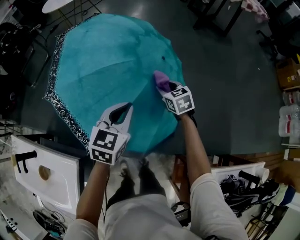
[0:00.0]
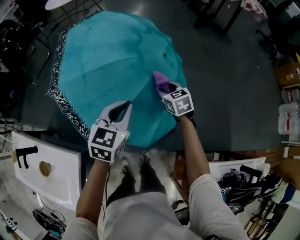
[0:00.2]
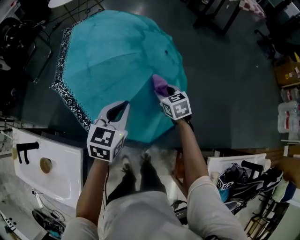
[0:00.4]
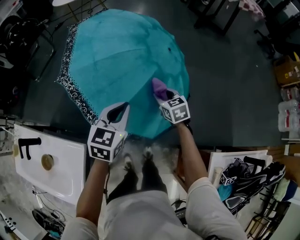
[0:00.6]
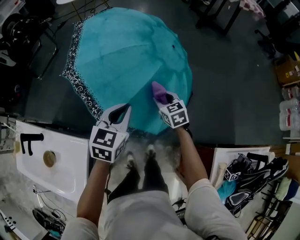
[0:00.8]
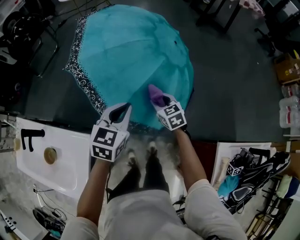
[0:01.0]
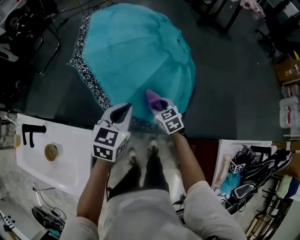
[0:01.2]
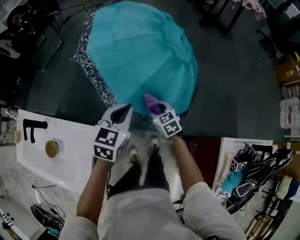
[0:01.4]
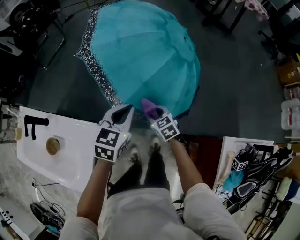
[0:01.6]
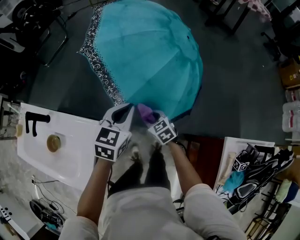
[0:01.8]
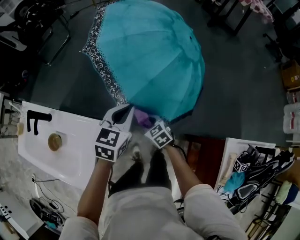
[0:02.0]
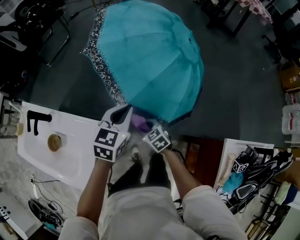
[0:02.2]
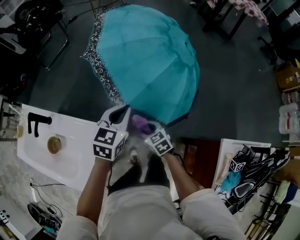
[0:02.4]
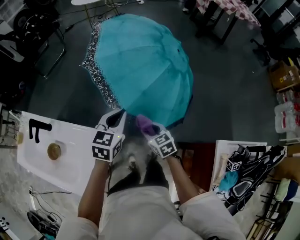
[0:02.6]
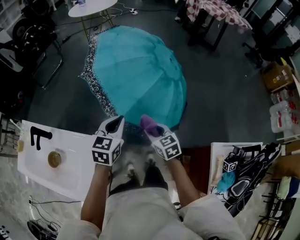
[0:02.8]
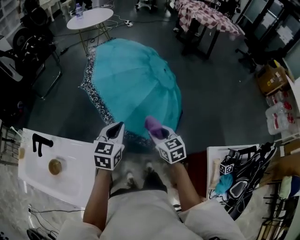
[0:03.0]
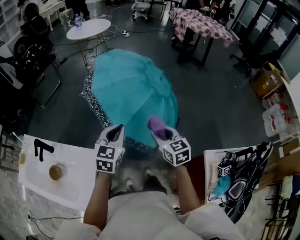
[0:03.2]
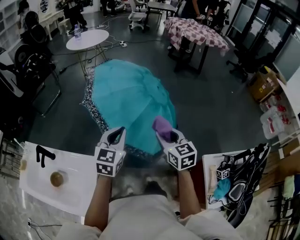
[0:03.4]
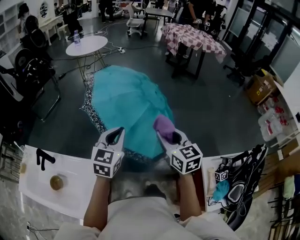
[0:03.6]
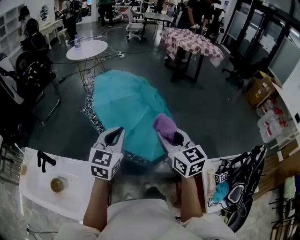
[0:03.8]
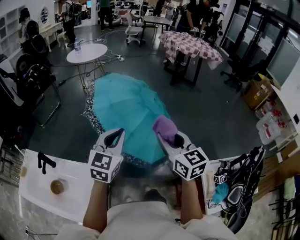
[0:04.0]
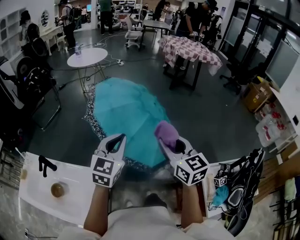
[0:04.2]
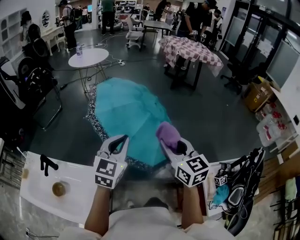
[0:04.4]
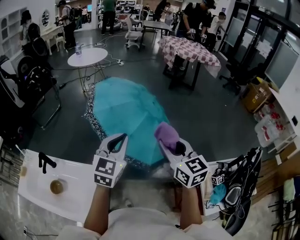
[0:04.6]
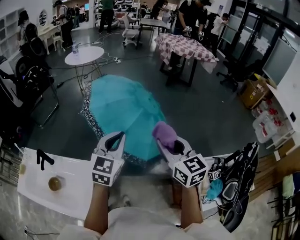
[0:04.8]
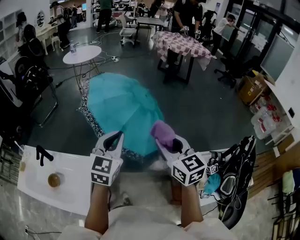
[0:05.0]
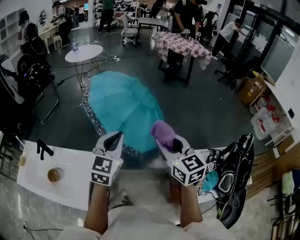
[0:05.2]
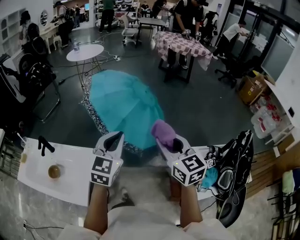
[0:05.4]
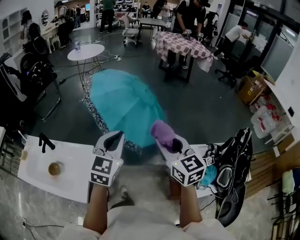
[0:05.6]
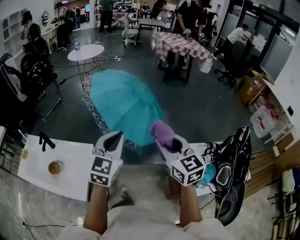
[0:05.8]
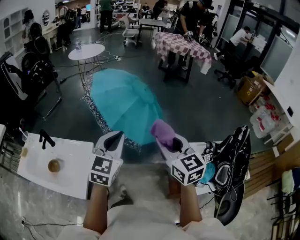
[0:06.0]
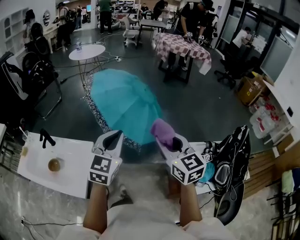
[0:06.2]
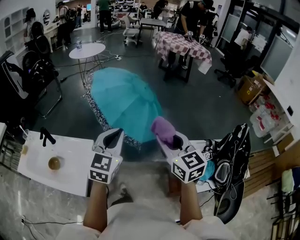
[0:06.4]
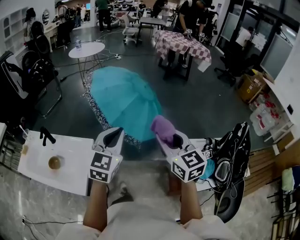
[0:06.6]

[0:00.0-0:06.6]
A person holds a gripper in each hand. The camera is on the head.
0:00.0 to 0:01.6: The two grippers go approximately 30 cm backward and to the left.
0:01.6 to 0:03.2: The left gripper heads upward, covering about 10 cm; the right gripper heads upward, covering approximately 25 cm, and turns by about 20 degrees.
0:03.2 to 0:05.0: The left gripper goes approximately 20 cm upward, backward and to the right, while the right gripper heads upward and backward, covering about 25 cm.
0:05.0 to 0:06.6: The two grippers go approximately 15 cm backward.

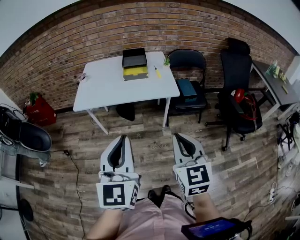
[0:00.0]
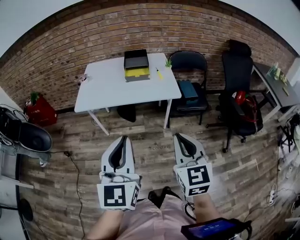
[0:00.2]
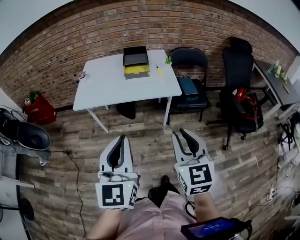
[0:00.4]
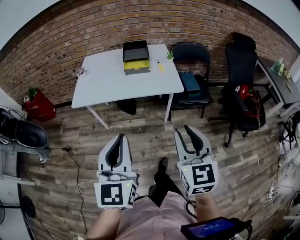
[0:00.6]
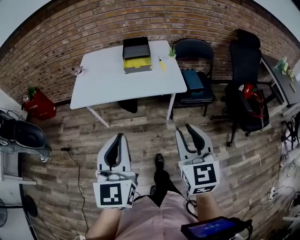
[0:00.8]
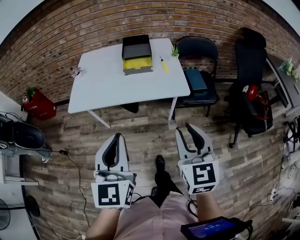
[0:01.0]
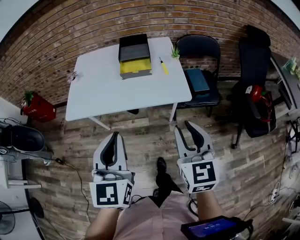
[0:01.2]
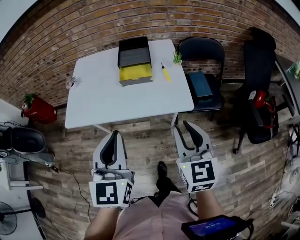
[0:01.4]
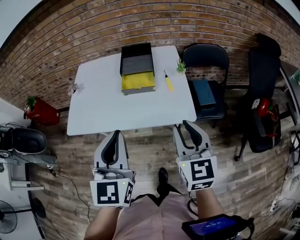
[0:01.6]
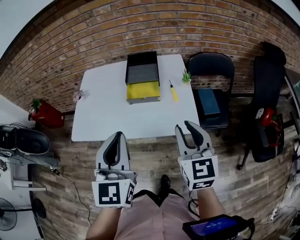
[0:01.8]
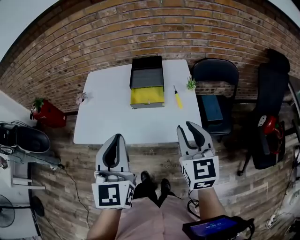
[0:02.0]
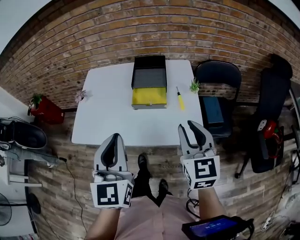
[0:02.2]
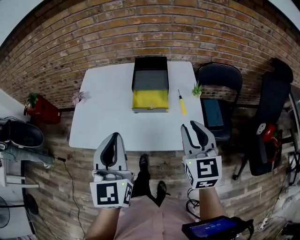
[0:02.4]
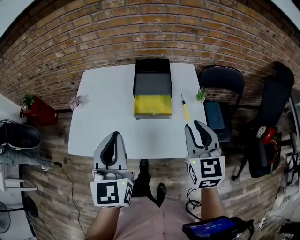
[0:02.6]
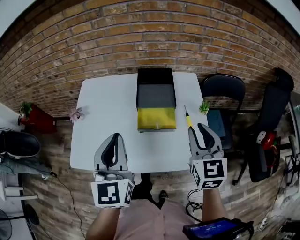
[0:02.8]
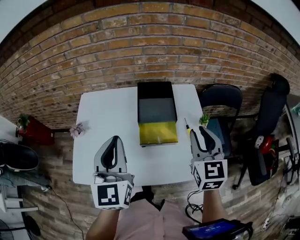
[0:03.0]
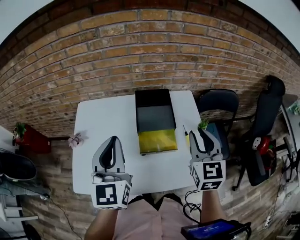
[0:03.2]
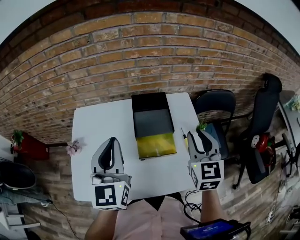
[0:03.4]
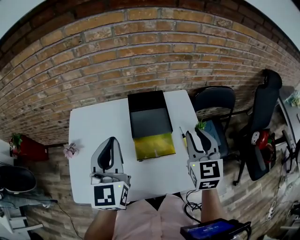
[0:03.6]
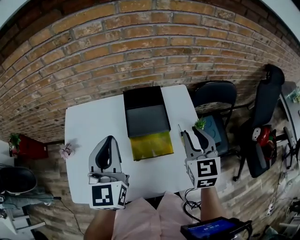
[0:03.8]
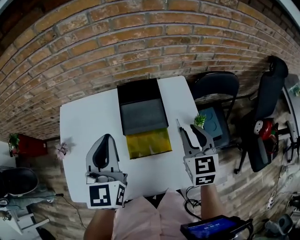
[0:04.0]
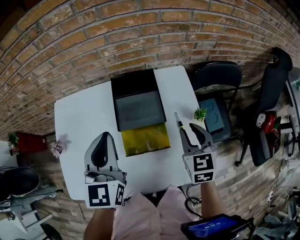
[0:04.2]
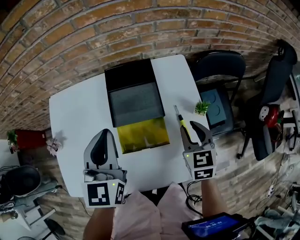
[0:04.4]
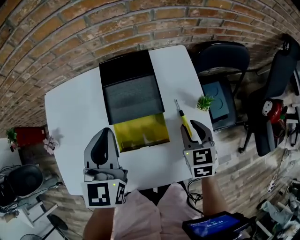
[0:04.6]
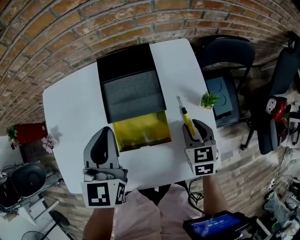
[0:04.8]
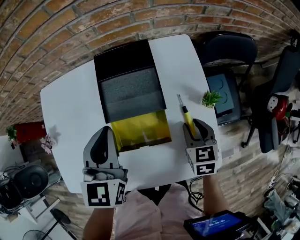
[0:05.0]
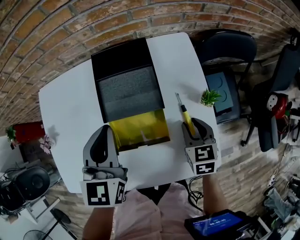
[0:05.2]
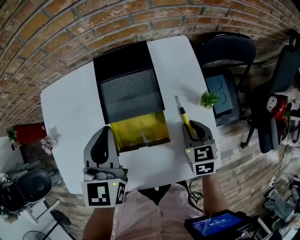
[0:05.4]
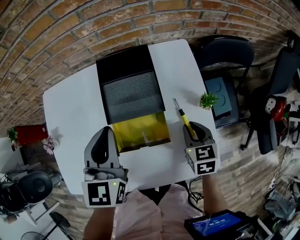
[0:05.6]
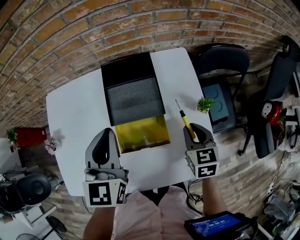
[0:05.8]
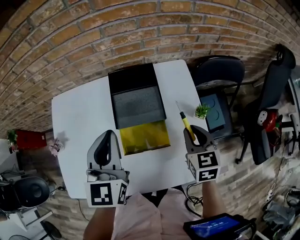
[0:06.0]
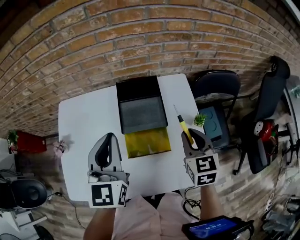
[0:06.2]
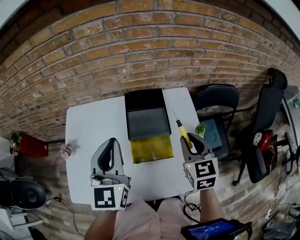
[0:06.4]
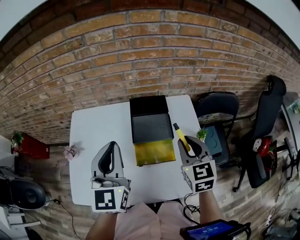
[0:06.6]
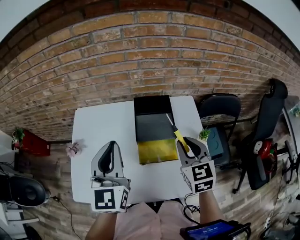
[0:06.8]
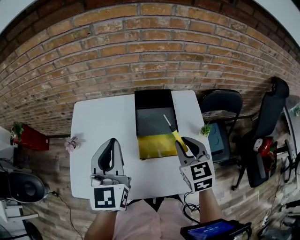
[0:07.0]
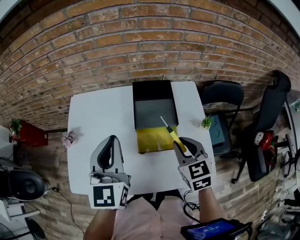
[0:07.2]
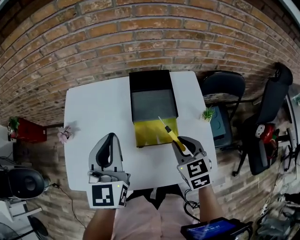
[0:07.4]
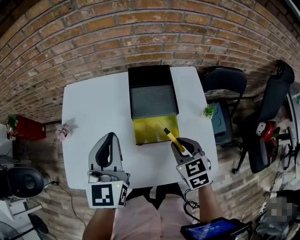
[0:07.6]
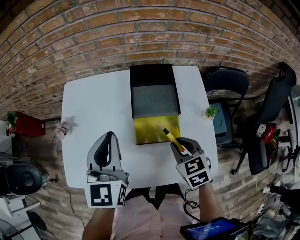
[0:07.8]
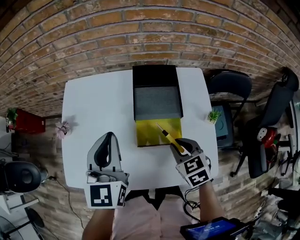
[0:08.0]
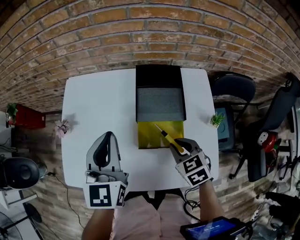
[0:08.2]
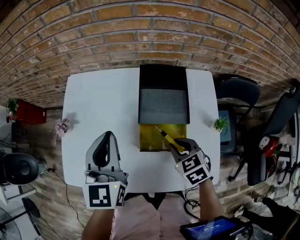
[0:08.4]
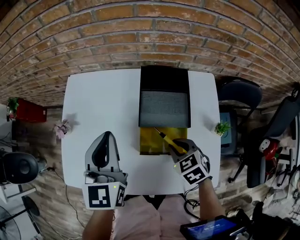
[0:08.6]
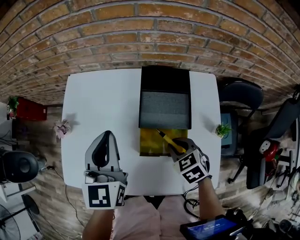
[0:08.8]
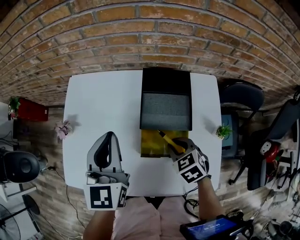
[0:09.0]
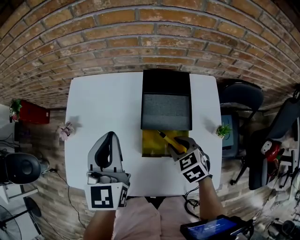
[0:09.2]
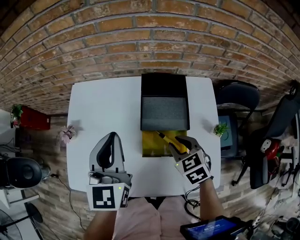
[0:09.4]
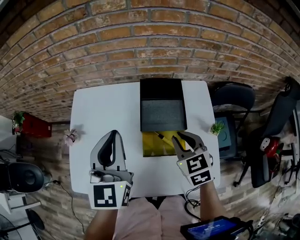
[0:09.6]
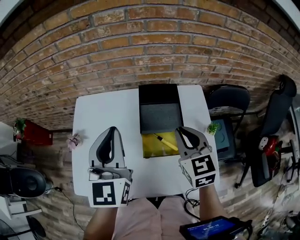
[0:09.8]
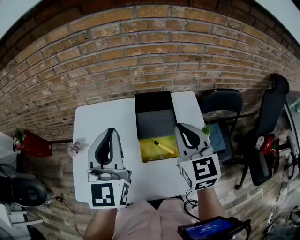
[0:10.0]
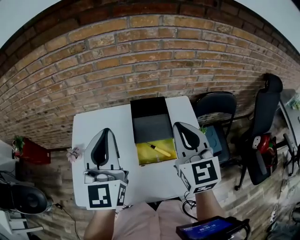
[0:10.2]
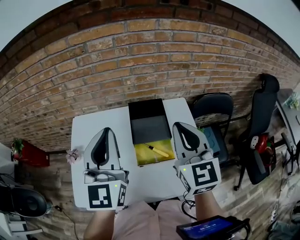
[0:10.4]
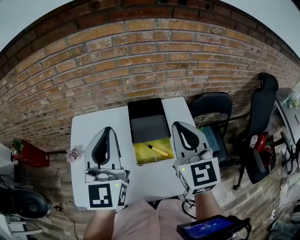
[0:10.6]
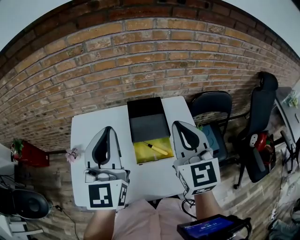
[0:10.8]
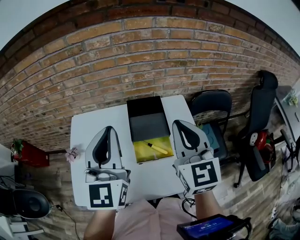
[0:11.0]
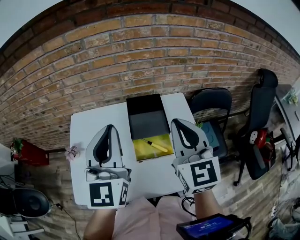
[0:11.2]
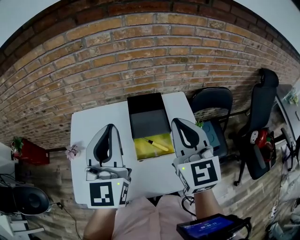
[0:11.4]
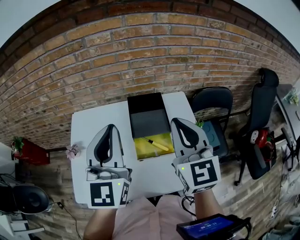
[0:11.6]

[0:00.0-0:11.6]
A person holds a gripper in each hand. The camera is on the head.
0:00.0 to 0:01.4: The two grippers go about 25 cm forward. The right gripper opens up.
0:01.4 to 0:02.8: The two grippers go some 25 cm forward.
0:02.8 to 0:04.4: The left gripper goes approximately 20 cm forward, while the right gripper heads downward and forward, covering about 20 cm, and turns by about 20 degrees.
0:05.8 to 0:07.2: The left gripper moves upward, to the left and backward, roughly 15 cm; the right gripper shifts roughly 15 cm to the left and upward, and swivels roughly 20 degrees.
0:07.2 to 0:08.8: The left gripper travels downward and forward by roughly 10 cm. The right gripper moves downward, some 15 cm, and turns by about 30 degrees.
0:08.8 to 0:10.2: The right gripper is displaced upward by roughly 30 cm, and points its fingers some 50 degrees further upward, while the left gripper is displaced upward by about 15 cm, and swivels some 20 degrees.
0:10.2 to 0:11.6: There are only small adjustments of the grippers.

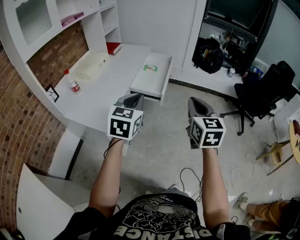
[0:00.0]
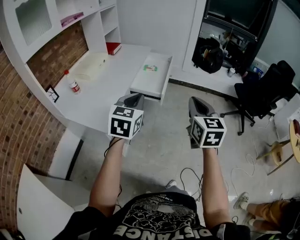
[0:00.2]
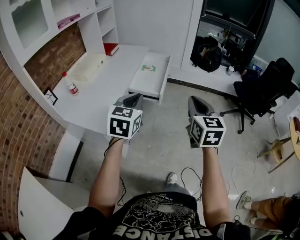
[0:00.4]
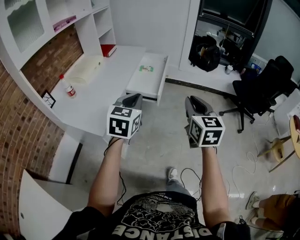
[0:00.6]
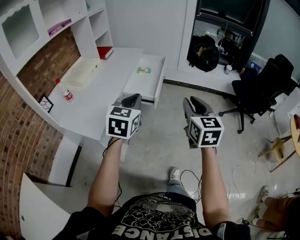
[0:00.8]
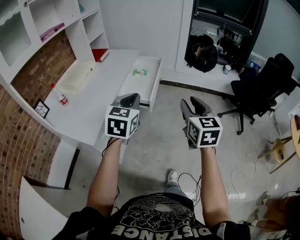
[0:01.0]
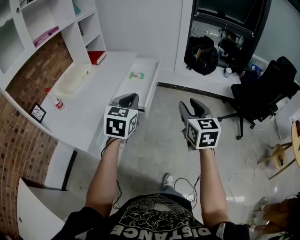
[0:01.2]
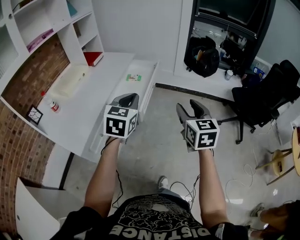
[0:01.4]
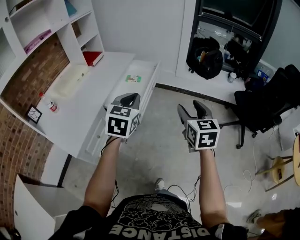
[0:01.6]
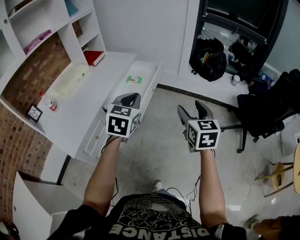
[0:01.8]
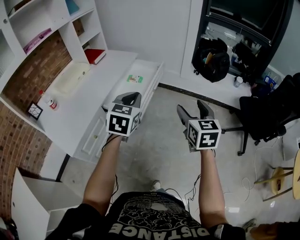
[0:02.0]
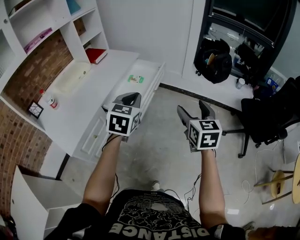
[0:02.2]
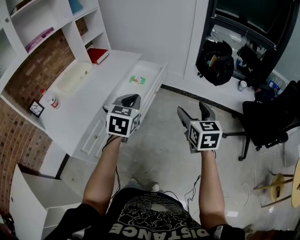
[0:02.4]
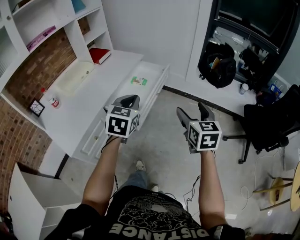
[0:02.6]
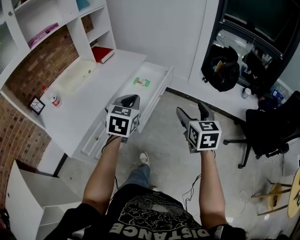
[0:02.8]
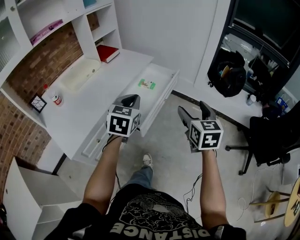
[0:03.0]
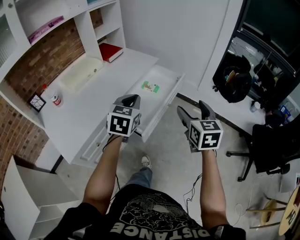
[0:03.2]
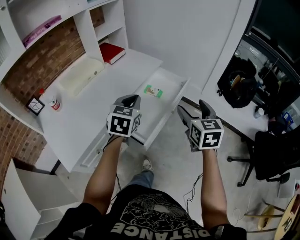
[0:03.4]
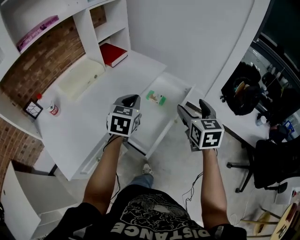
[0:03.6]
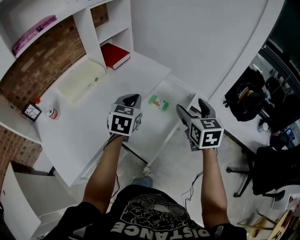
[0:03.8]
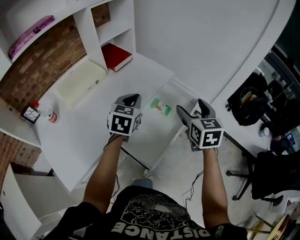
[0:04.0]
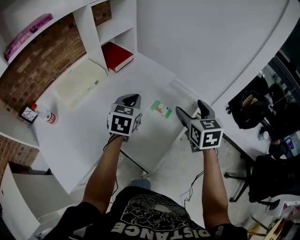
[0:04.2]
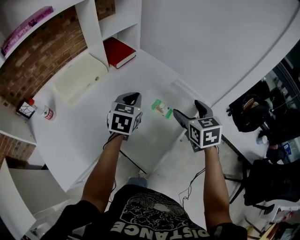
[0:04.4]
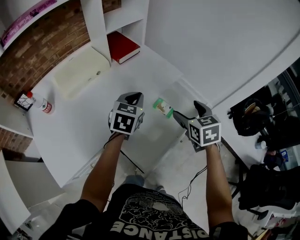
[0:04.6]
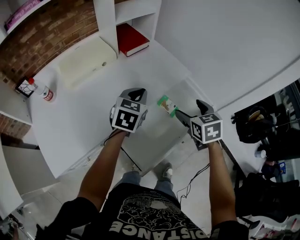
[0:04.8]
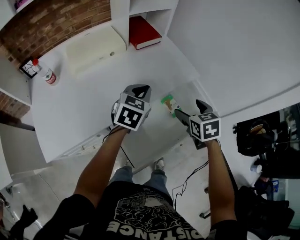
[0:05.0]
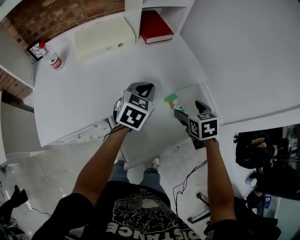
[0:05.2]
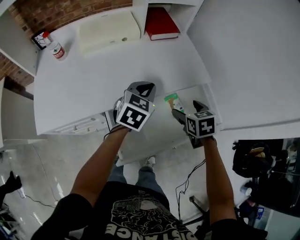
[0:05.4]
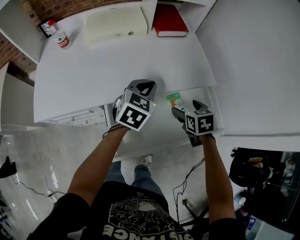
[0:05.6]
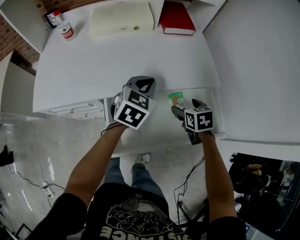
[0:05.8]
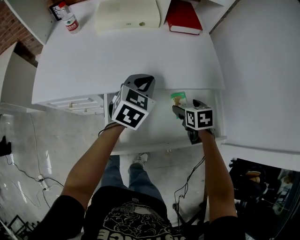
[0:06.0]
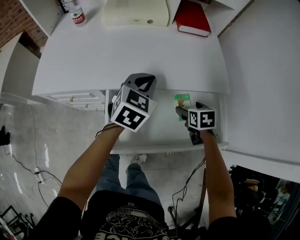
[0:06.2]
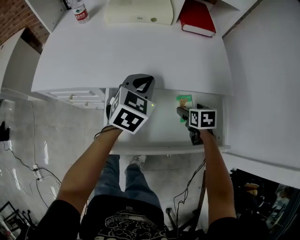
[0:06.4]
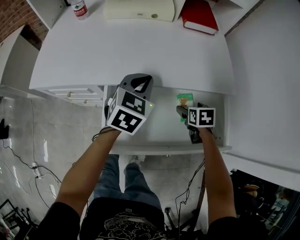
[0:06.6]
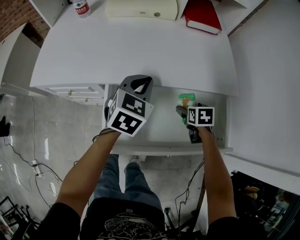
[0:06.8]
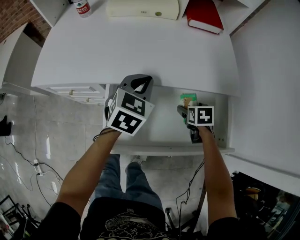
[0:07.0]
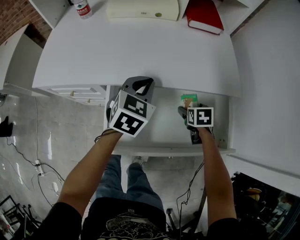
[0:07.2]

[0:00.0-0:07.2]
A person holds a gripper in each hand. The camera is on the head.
0:00.0 to 0:01.4: Both grippers move forward and to the right, roughly 20 cm. The right gripper opens.
0:01.4 to 0:02.8: The two grippers go about 15 cm forward. The right gripper opens up.
0:02.8 to 0:04.4: Both grippers travel together forward and to the left, roughly 40 cm. The right gripper turns by roughly 30 degrees.
0:04.4 to 0:05.8: The right gripper is displaced downward by some 20 cm, and rotates about 40 degrees. Meanwhile the left gripper heads downward, covering about 10 cm, and rotates about 30 degrees.
0:05.8 to 0:07.2: The right gripper heads downward, covering some 15 cm. Meanwhile the left gripper moves downward, roughly 5 cm.
